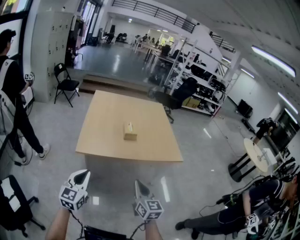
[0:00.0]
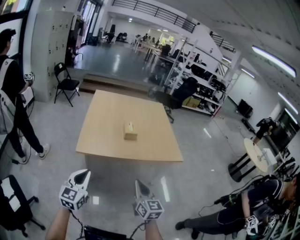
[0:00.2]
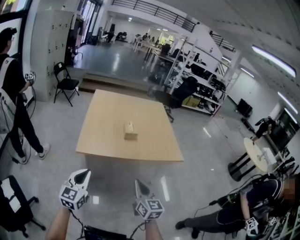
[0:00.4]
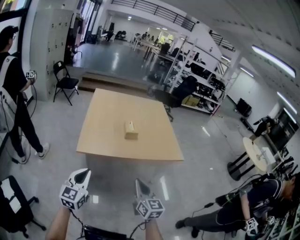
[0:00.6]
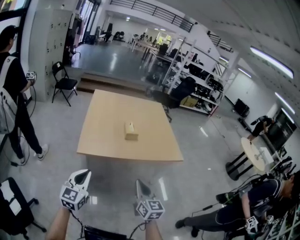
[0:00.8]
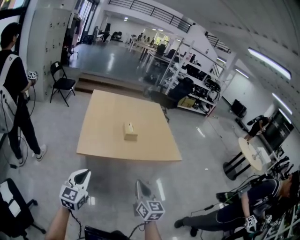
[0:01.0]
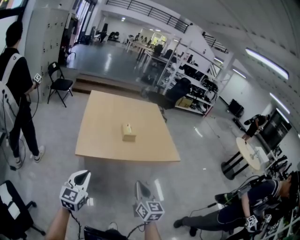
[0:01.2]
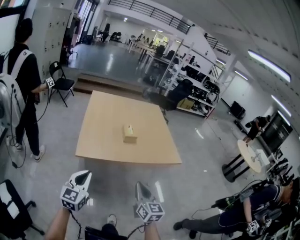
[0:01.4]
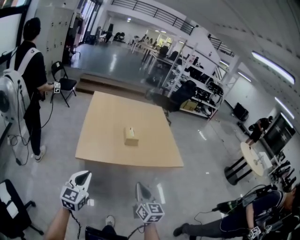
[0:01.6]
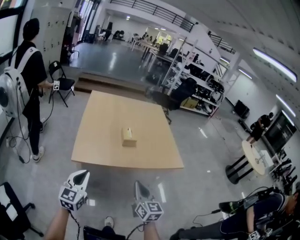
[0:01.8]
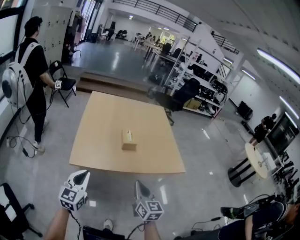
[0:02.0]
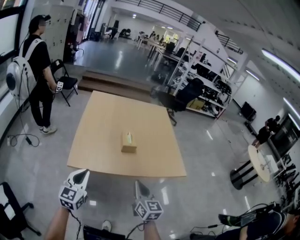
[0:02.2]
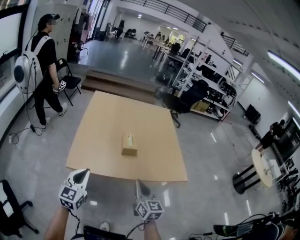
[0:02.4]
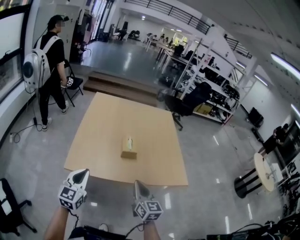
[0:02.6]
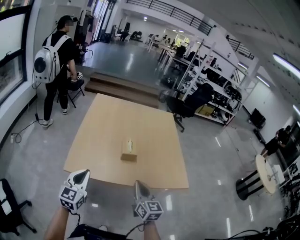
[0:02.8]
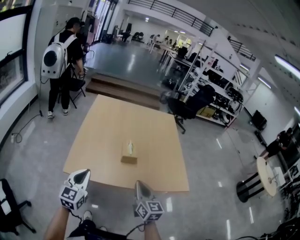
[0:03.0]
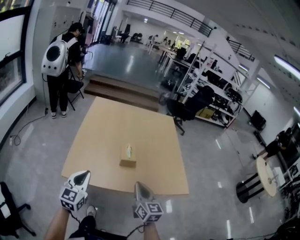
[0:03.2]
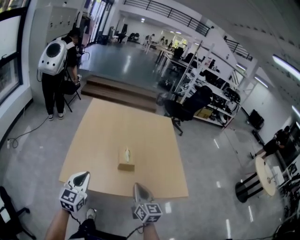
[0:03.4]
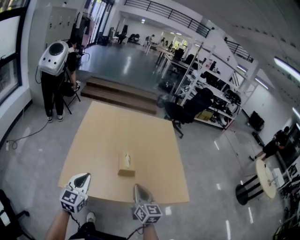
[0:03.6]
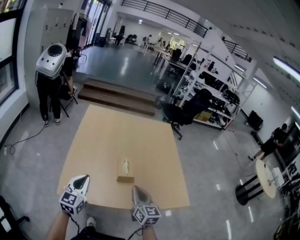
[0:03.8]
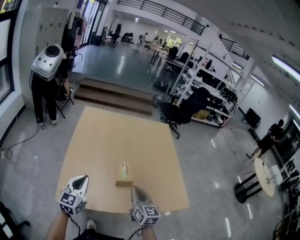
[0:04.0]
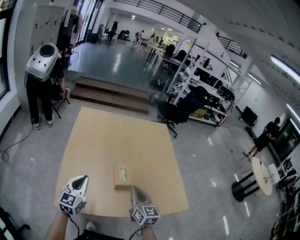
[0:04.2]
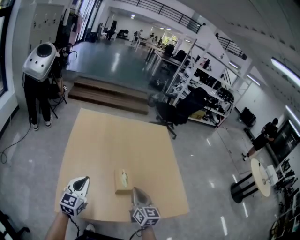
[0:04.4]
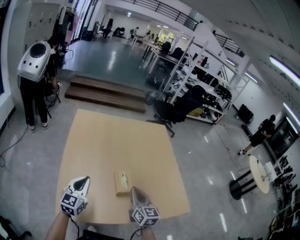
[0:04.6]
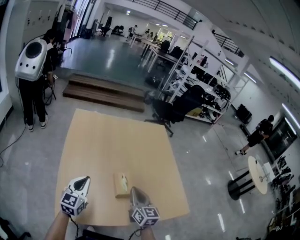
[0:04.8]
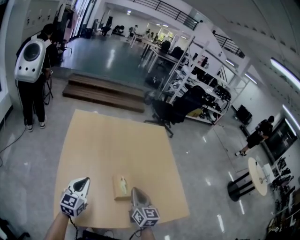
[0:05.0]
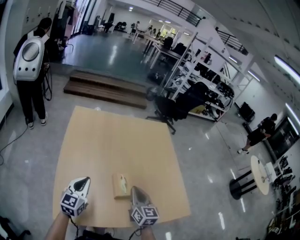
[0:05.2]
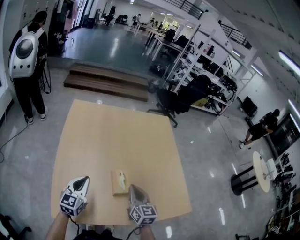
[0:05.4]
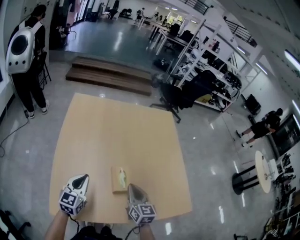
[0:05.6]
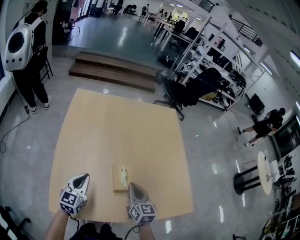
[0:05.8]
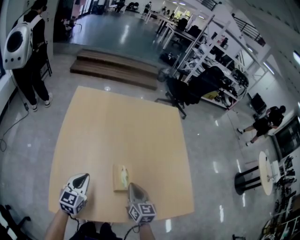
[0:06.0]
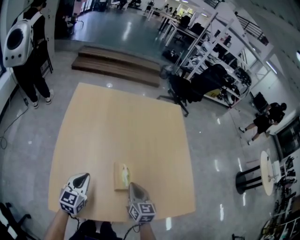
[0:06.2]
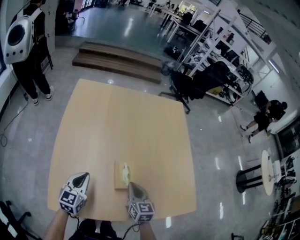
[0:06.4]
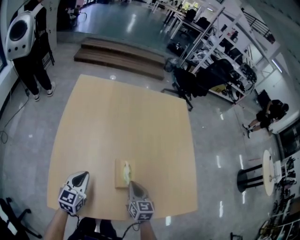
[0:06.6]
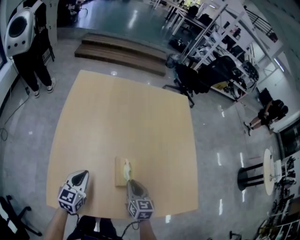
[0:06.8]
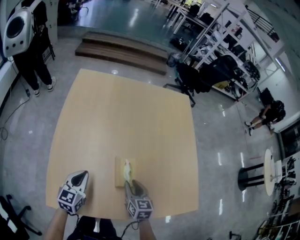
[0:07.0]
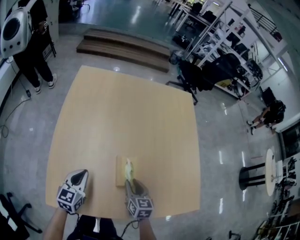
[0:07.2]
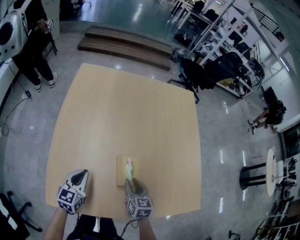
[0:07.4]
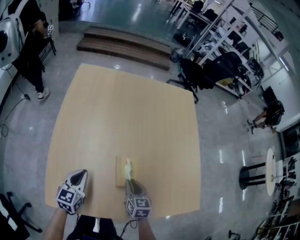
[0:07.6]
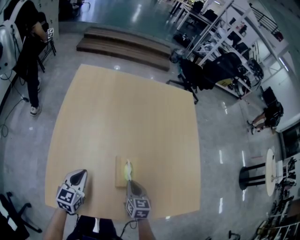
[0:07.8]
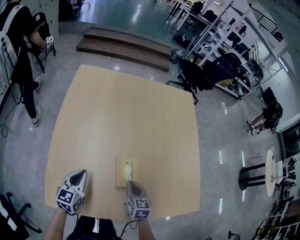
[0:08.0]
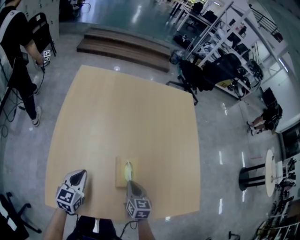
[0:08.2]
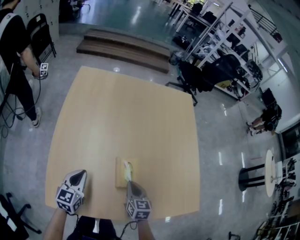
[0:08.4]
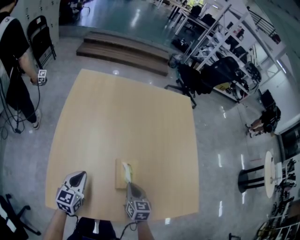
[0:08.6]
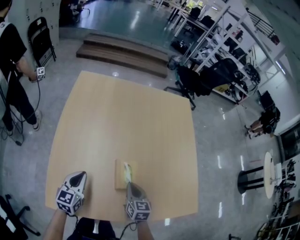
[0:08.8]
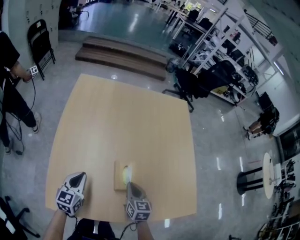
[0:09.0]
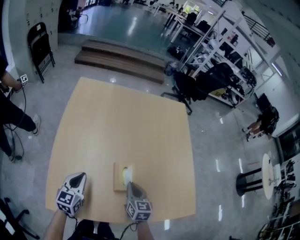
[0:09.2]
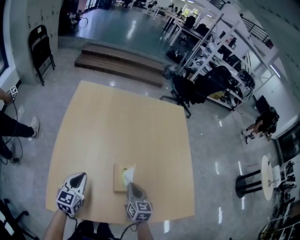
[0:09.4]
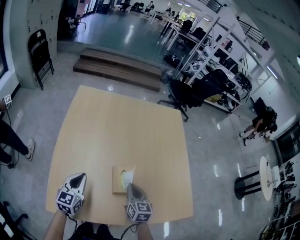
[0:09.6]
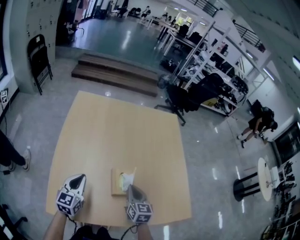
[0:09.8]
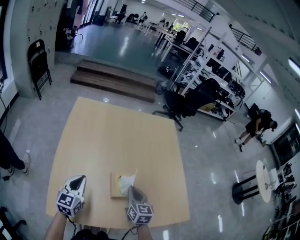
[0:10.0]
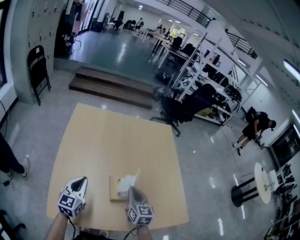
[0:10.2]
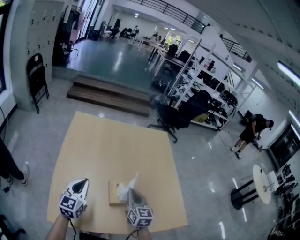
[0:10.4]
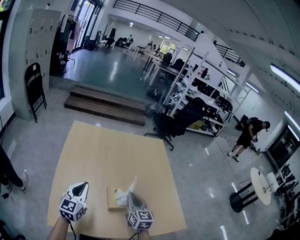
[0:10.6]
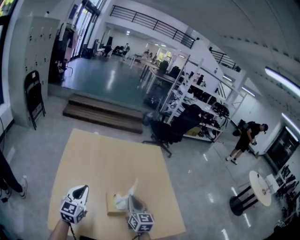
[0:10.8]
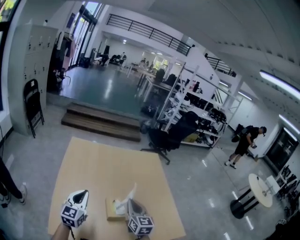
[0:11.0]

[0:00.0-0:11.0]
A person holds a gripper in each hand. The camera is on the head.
0.0 to 1.6 s: The left gripper moves forward, about 5 cm; the right gripper ends up some 5 cm from where it was.
1.6 to 3.2 s: The grippers both shift forward by roughly 20 cm.
3.2 to 4.8 s: The two grippers go some 25 cm forward.
4.8 to 6.2 s: Both grippers move downward, some 10 cm.
6.2 to 7.8 s: The left gripper shifts some 5 cm downward, while the right gripper goes approximately 10 cm downward, and opens and closes again.
7.8 to 9.4 s: The right gripper is displaced upward by roughly 5 cm.
9.4 to 11.0 s: Both grippers move upward, approximately 15 cm. The right gripper swivels roughly 20 degrees.

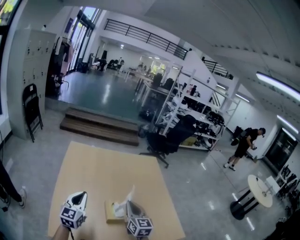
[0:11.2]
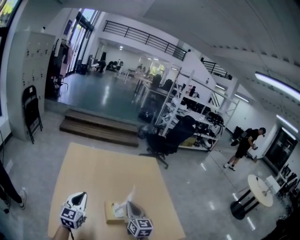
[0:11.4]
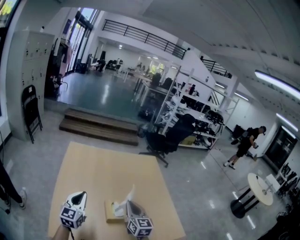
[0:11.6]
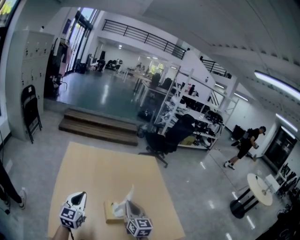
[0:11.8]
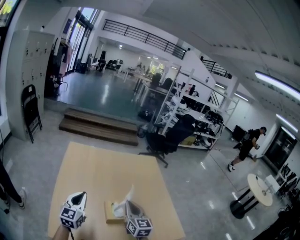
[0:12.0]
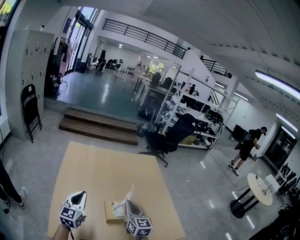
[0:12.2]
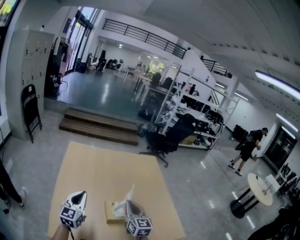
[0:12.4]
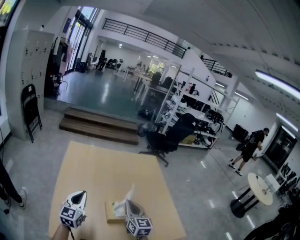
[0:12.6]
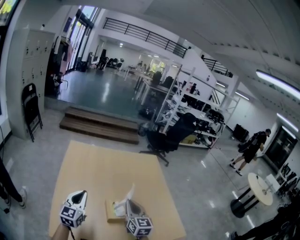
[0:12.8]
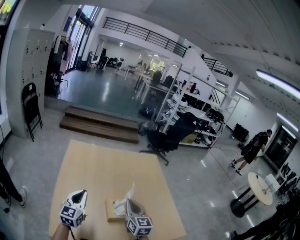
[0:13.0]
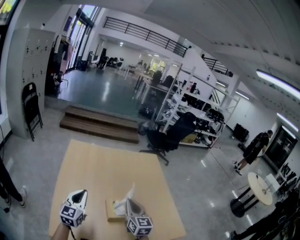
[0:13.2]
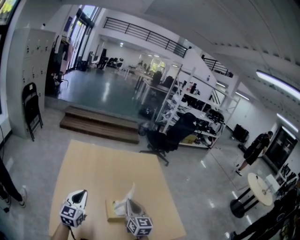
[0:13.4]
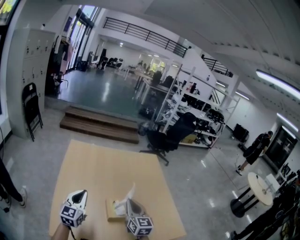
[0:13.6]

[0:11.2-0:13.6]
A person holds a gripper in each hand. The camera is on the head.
11.2 to 13.6 s: The two grippers keep their place.

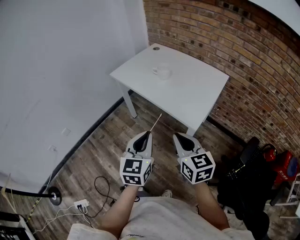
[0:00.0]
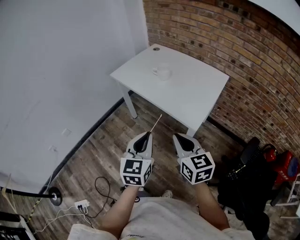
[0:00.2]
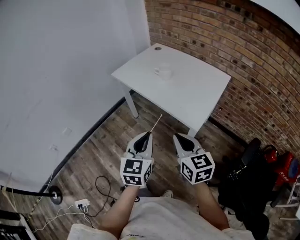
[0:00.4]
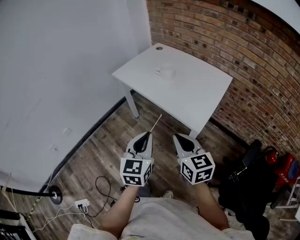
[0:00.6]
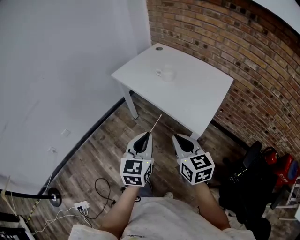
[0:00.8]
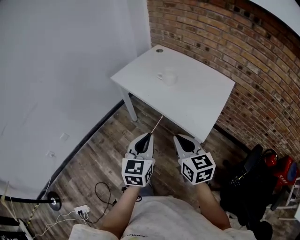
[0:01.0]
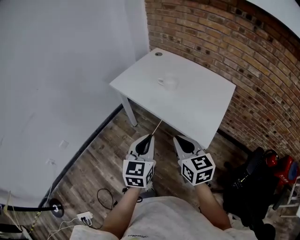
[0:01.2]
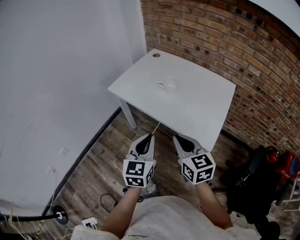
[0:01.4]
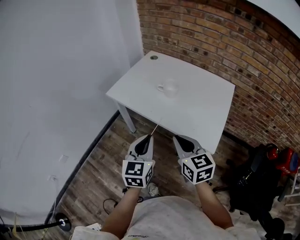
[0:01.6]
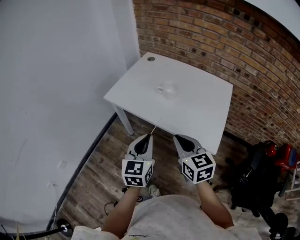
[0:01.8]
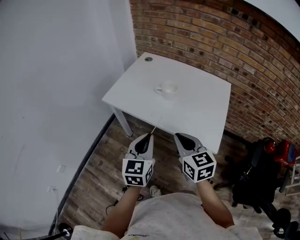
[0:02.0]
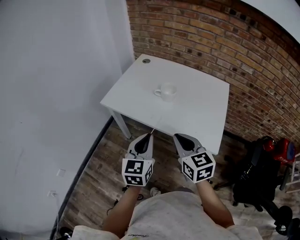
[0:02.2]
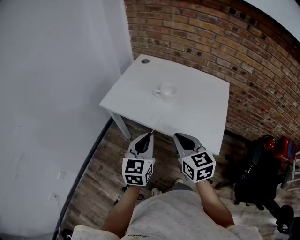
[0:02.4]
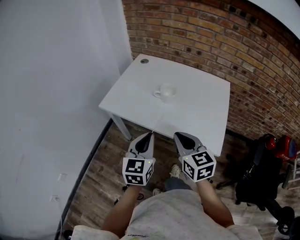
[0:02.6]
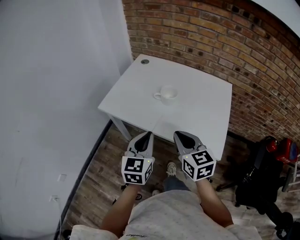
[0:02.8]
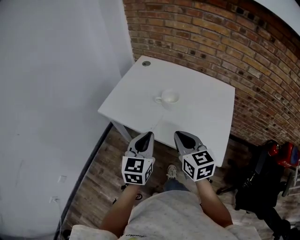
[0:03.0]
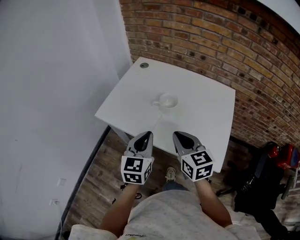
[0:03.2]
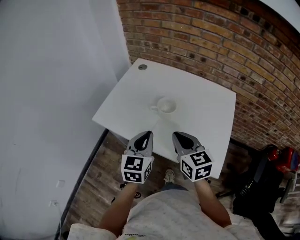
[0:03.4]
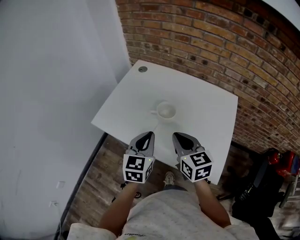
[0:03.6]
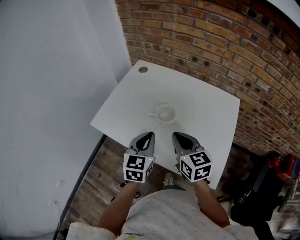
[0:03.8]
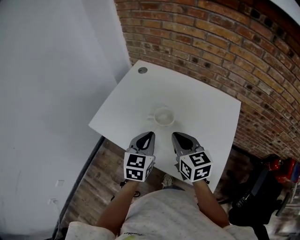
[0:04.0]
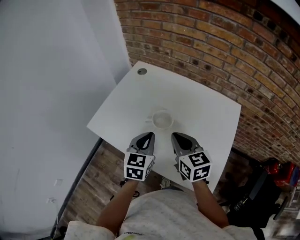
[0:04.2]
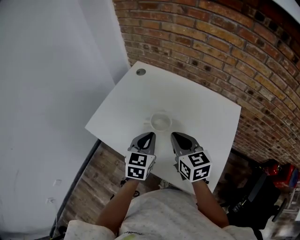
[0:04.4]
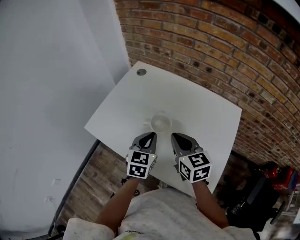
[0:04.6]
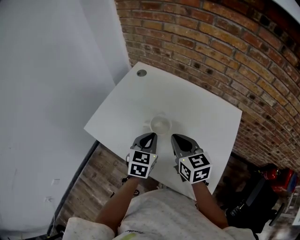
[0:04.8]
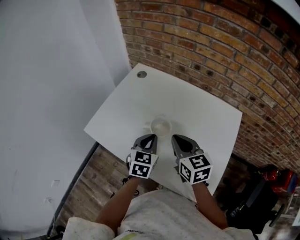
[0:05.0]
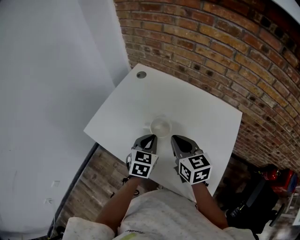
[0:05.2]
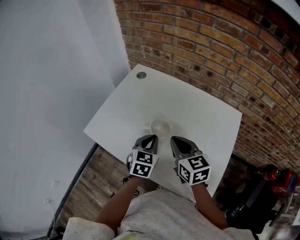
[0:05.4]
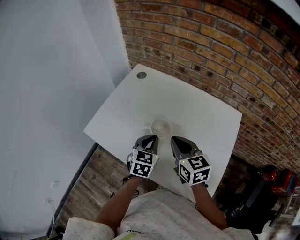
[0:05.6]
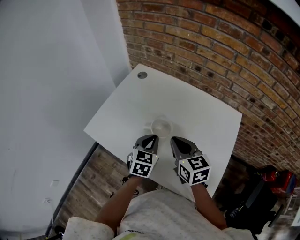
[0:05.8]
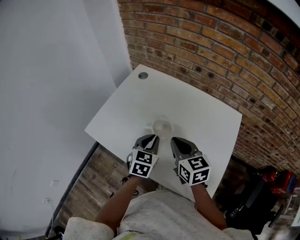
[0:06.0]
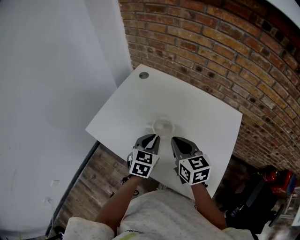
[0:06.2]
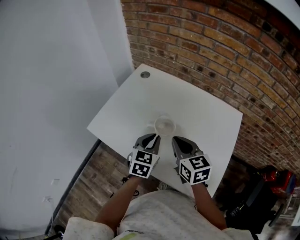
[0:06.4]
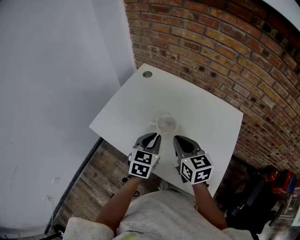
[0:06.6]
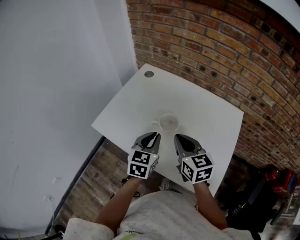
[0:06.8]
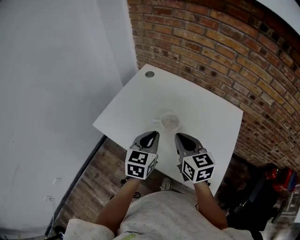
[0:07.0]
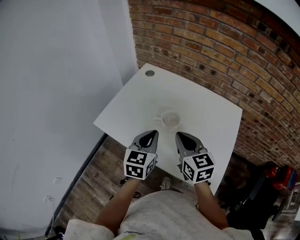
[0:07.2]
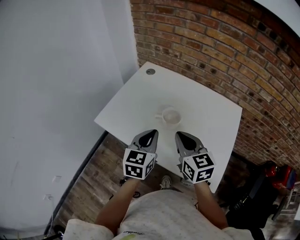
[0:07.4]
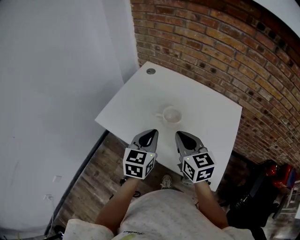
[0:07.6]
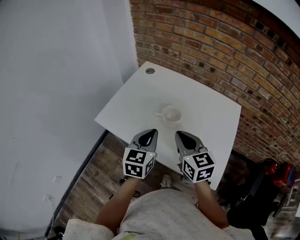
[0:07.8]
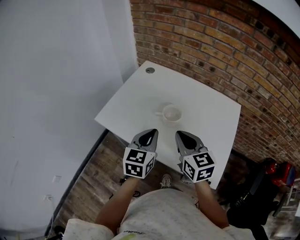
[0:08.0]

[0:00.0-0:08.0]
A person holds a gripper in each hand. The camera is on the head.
0.0 to 1.6 s: The grippers both shift forward and to the left by approximately 20 cm.
1.6 to 3.2 s: Both grippers move forward, approximately 15 cm.
3.2 to 4.8 s: The left gripper is displaced forward, to the right and downward by about 20 cm. Meanwhile the right gripper is displaced forward and to the right by some 15 cm.
4.8 to 6.4 s: The grippers stay close to where they were, moving slightly.
6.4 to 8.0 s: The left gripper moves backward, upward and to the left, about 10 cm. Meanwhile the right gripper heads backward, covering roughly 5 cm.

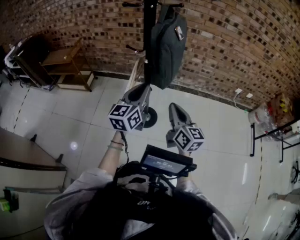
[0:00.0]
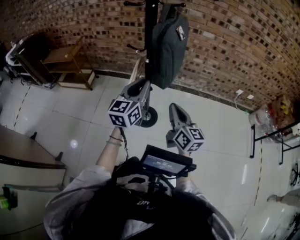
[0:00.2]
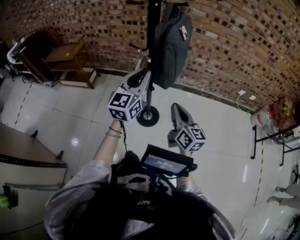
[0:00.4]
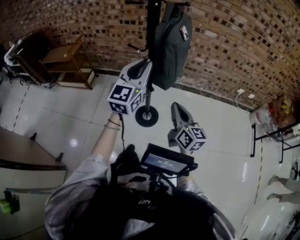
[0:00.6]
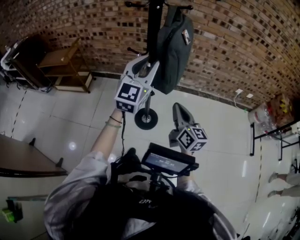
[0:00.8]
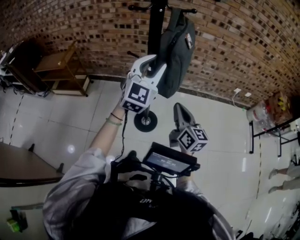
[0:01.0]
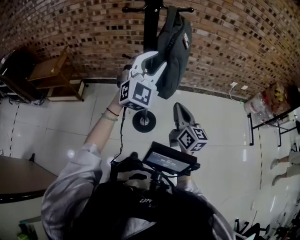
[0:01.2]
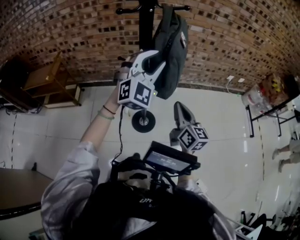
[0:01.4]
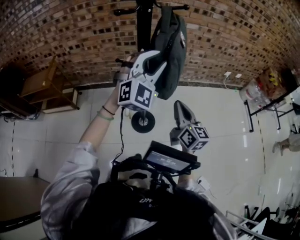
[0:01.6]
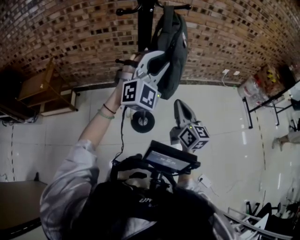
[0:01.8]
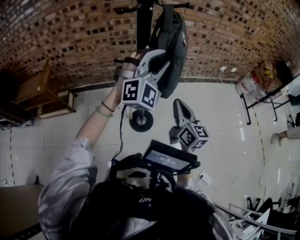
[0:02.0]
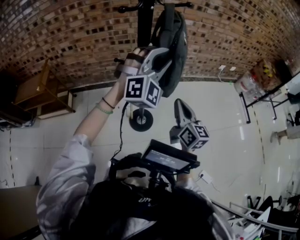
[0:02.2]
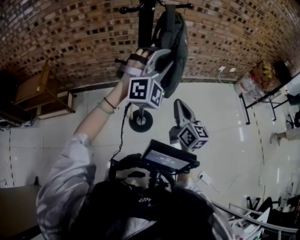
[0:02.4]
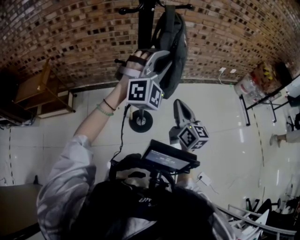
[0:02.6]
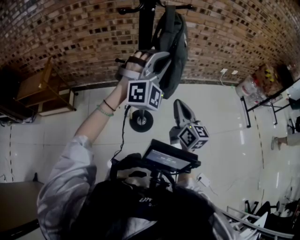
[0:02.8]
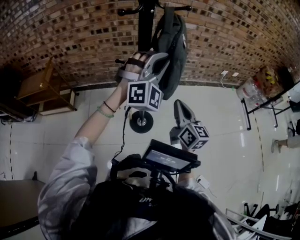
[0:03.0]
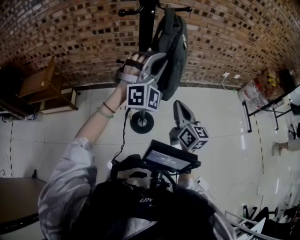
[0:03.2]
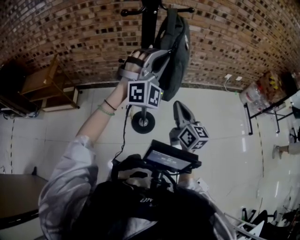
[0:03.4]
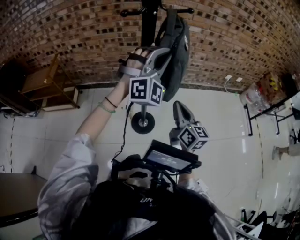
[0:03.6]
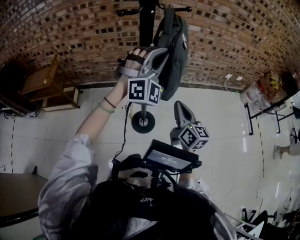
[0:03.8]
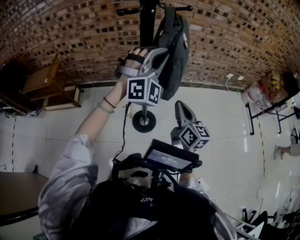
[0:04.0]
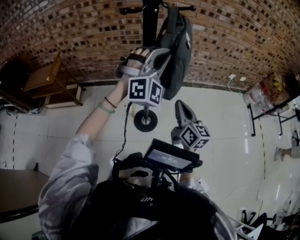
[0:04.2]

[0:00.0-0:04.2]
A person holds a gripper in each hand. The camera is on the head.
0.0 to 1.4 s: The left gripper heads forward and upward, covering roughly 20 cm, and rotates around the line of its fingers by some 60 degrees, clockwise from behind. Meanwhile the right gripper travels forward by approximately 10 cm.
1.4 to 2.8 s: The grippers make only small movements.
2.8 to 4.2 s: The grippers stay close to where they were, moving slightly.
